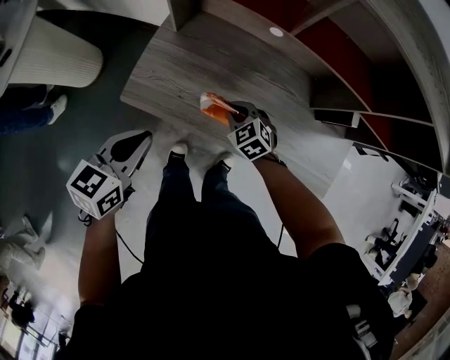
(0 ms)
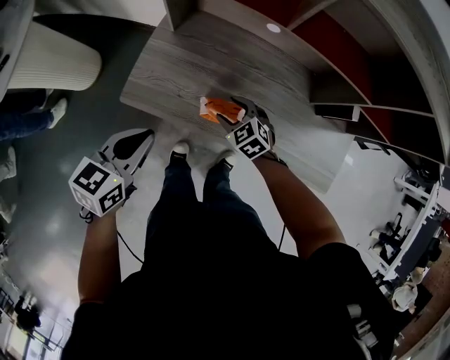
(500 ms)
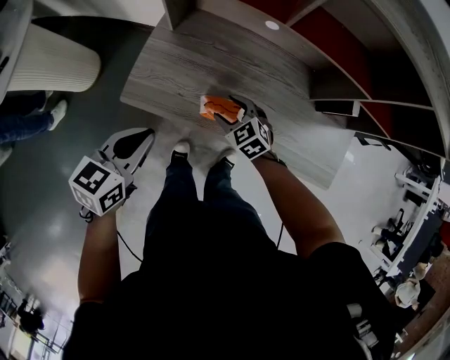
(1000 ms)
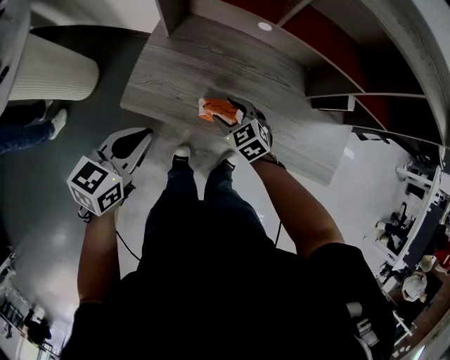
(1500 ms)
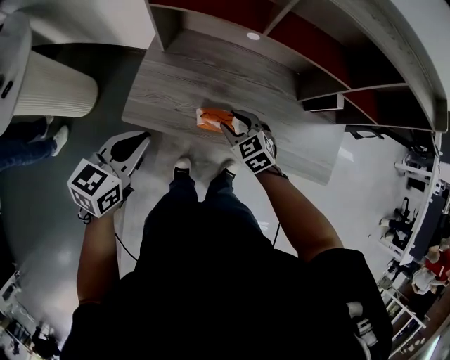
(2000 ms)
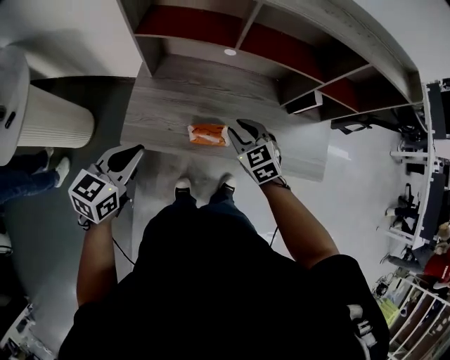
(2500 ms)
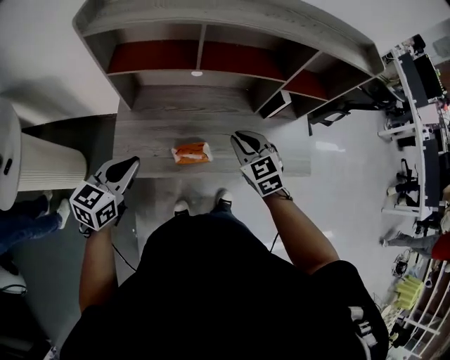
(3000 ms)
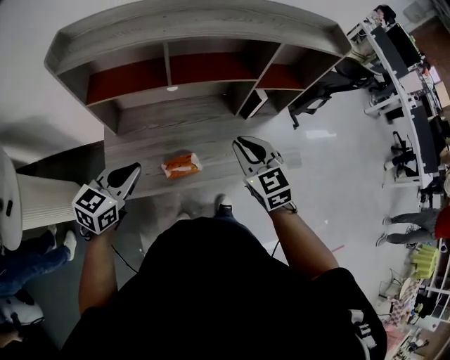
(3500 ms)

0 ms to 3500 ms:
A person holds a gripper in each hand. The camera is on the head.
0 ms to 2000 ms: The right gripper heads upward, covering some 5 cm, and opens up.
2000 ms to 3500 ms: The left gripper changes place by about 10 cm, and turns by roughly 20 degrees. Meanwhile the right gripper moves upward, about 25 cm, rotates approximately 40 degrees, and closes up.

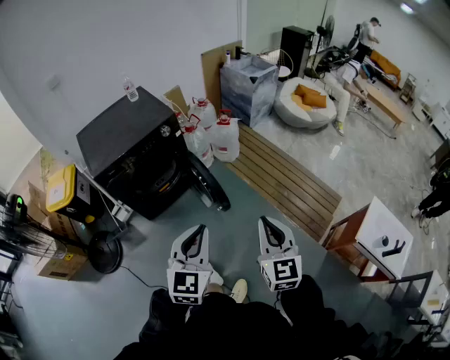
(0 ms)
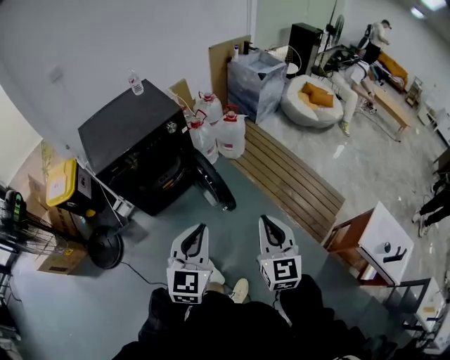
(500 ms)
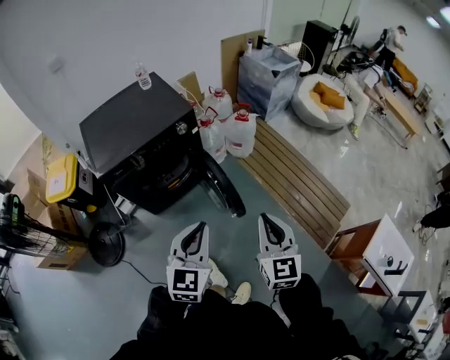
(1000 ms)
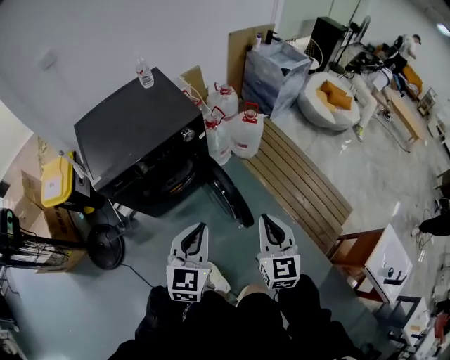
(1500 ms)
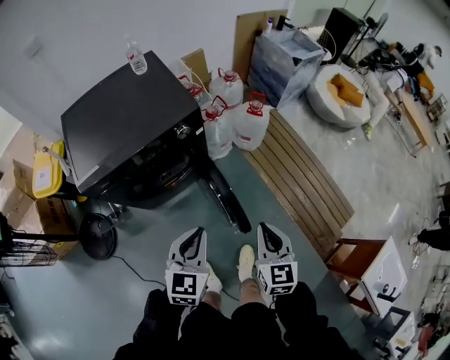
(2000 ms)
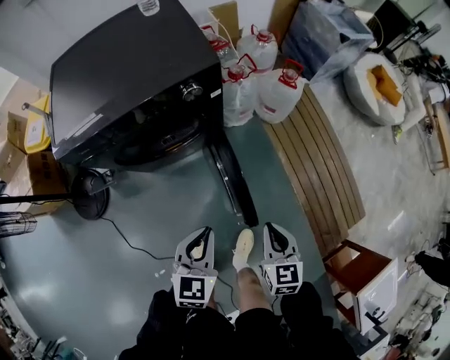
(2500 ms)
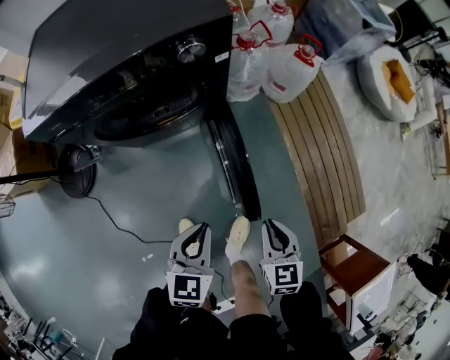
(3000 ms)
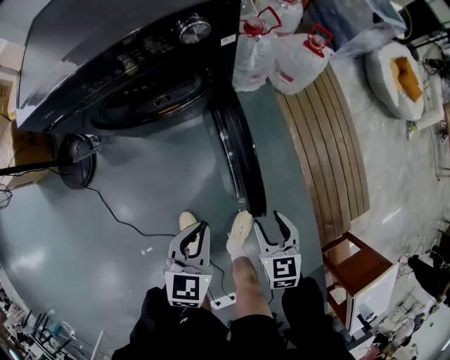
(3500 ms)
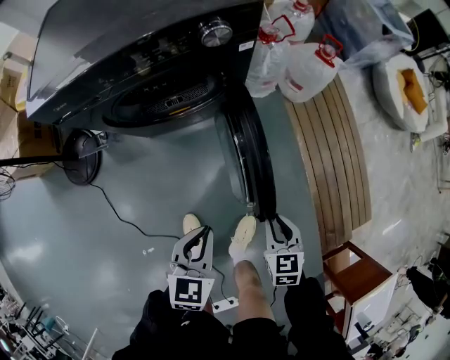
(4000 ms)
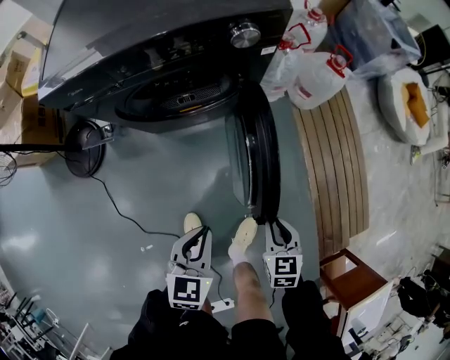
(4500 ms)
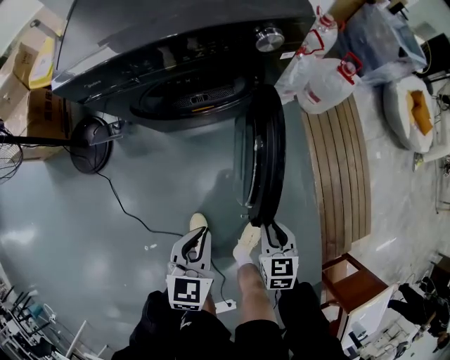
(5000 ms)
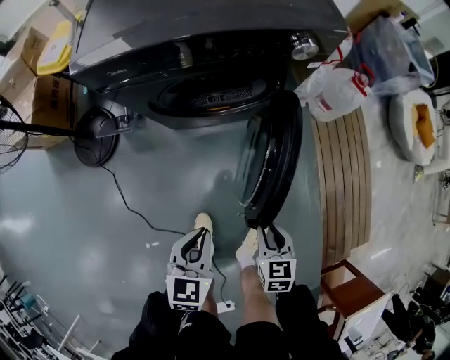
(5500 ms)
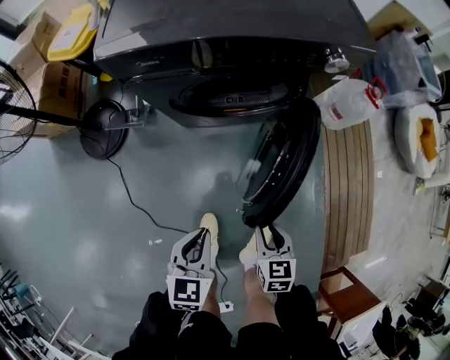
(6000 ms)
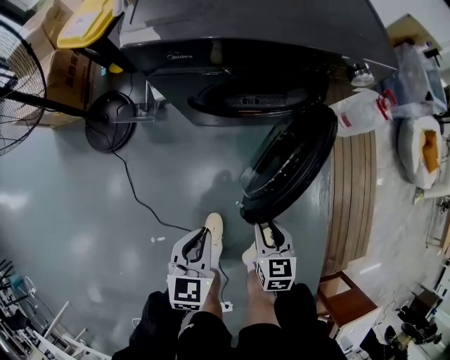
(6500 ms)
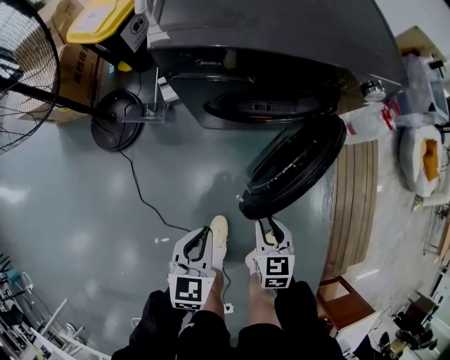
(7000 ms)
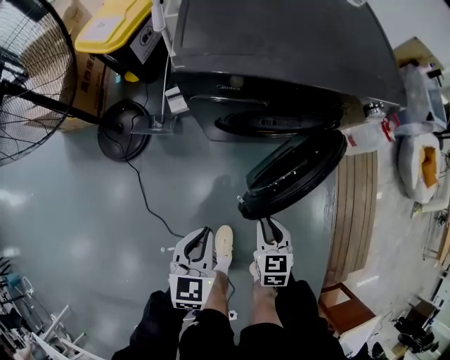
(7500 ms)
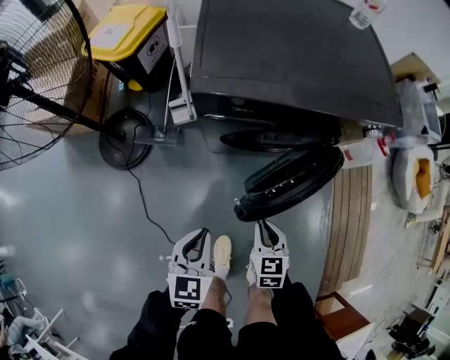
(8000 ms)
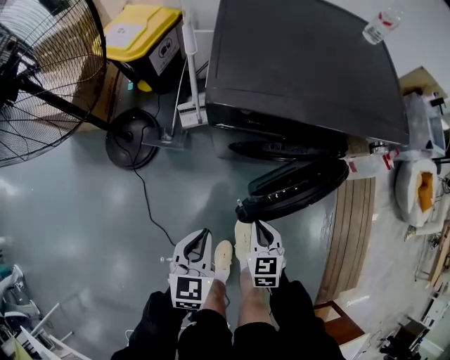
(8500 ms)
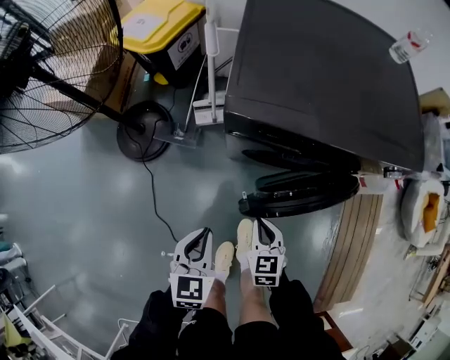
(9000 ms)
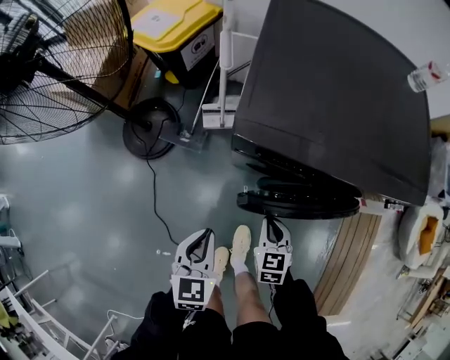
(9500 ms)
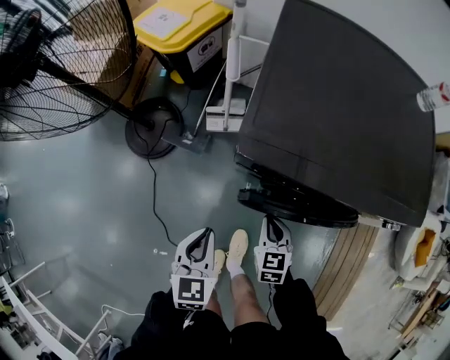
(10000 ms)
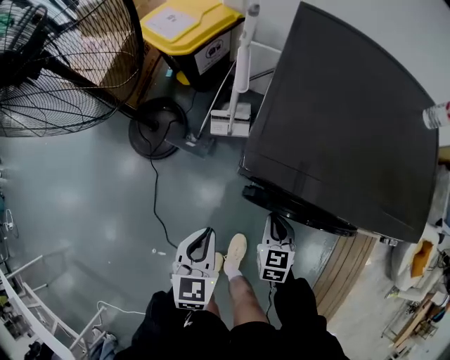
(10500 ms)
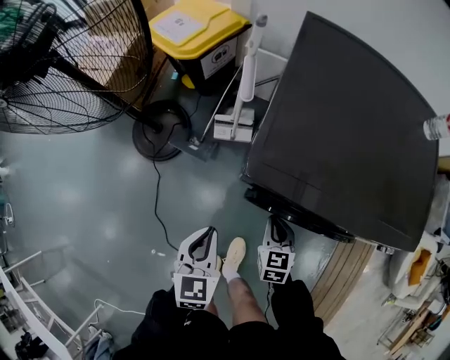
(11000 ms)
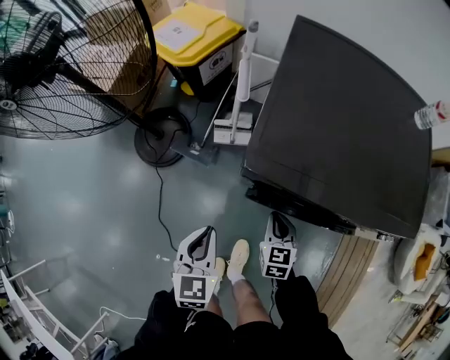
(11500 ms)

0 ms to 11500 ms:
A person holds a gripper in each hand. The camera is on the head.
0 ms to 2000 ms: The right gripper heads forward, downward and to the left, covering approximately 40 cm; the left gripper heads forward, to the left and downward, covering about 40 cm.
2000 ms to 4000 ms: Both grippers move downward, some 35 cm. The right gripper turns by approximately 30 degrees, and opens, then closes once more. Meanwhile the left gripper changes its angle by roughly 20 degrees.
4000 ms to 6000 ms: The two grippers go about 20 cm to the left.
6000 ms to 7500 ms: The right gripper moves to the left and forward, approximately 15 cm. Meanwhile the left gripper is displaced to the left by approximately 15 cm.
7500 ms to 9500 ms: The left gripper goes approximately 15 cm forward and to the left. Meanwhile the right gripper heads forward, covering roughly 20 cm.
9500 ms to 11500 ms: The two grippers go some 10 cm forward.

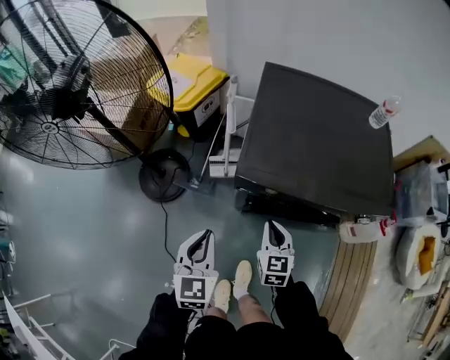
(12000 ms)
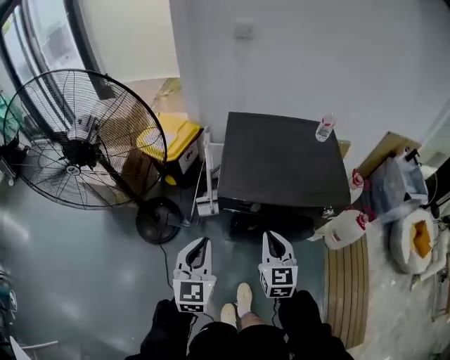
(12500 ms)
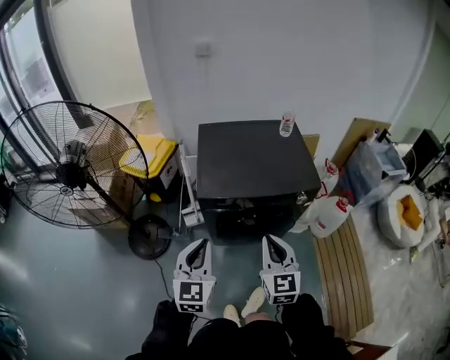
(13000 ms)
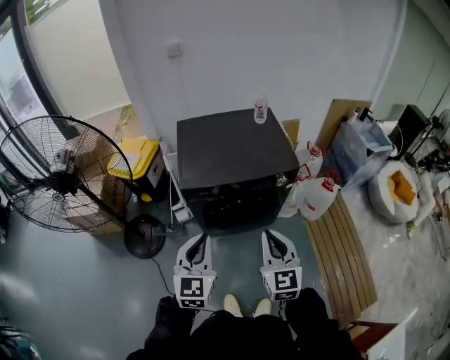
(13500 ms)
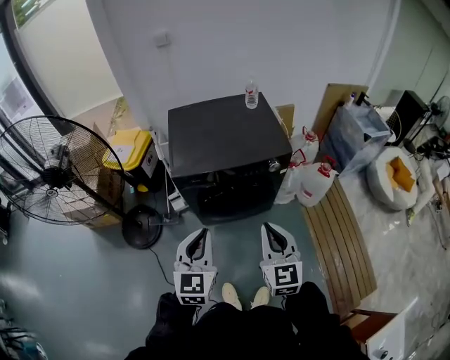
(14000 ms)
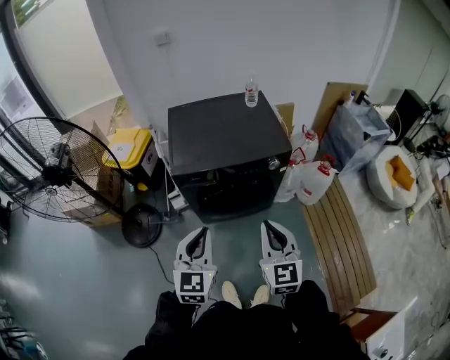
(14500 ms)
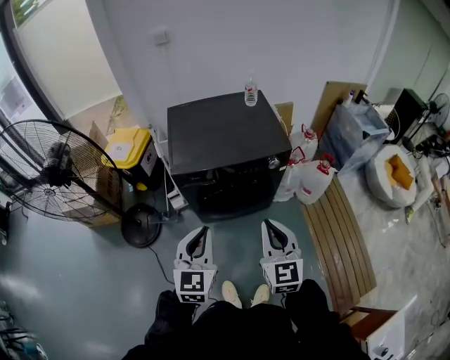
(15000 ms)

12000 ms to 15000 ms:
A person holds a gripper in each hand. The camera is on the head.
12000 ms to 13500 ms: Both grippers travel together upward, backward and to the right, roughly 40 cm. The left gripper swivels roughly 30 degrees; the right gripper changes its angle by roughly 30 degrees.
13500 ms to 15000 ms: There are only small adjustments of the grippers.

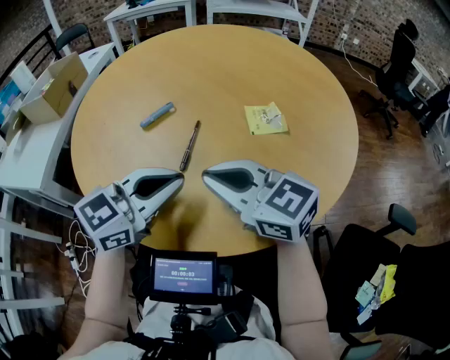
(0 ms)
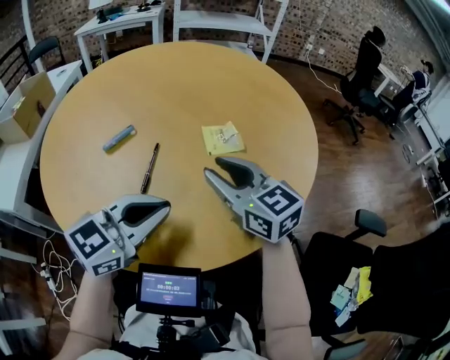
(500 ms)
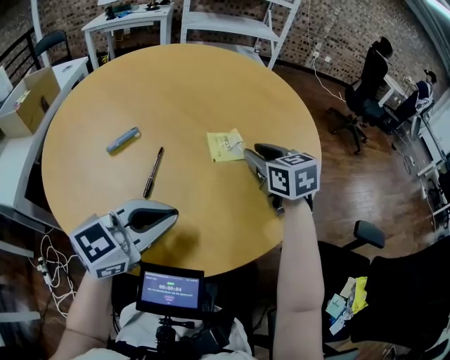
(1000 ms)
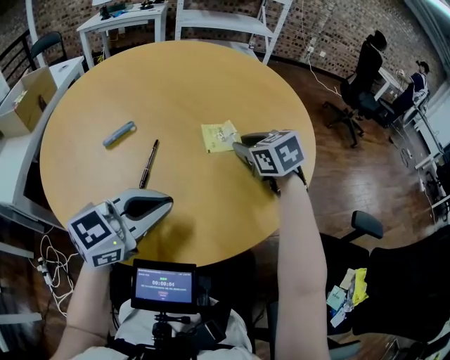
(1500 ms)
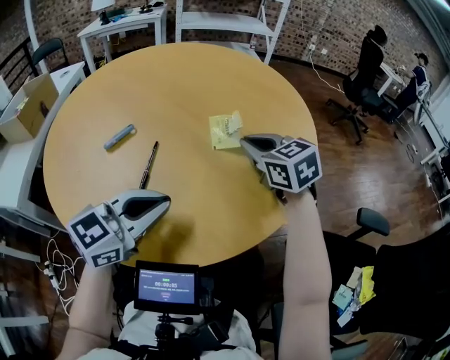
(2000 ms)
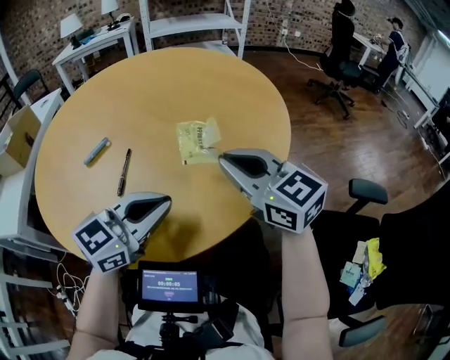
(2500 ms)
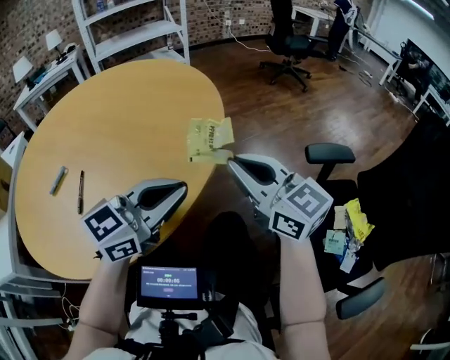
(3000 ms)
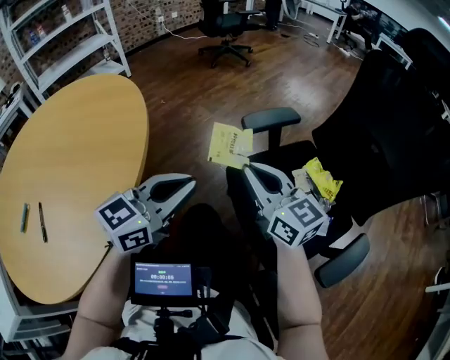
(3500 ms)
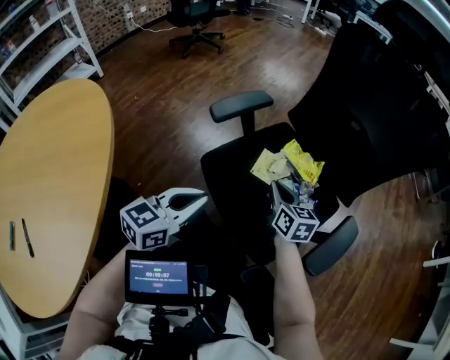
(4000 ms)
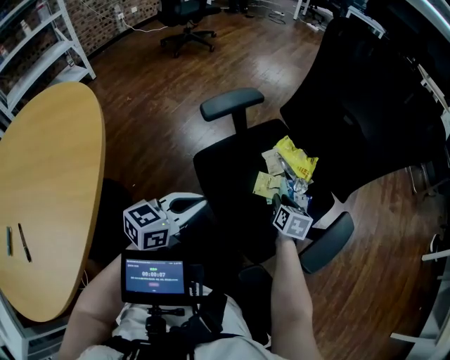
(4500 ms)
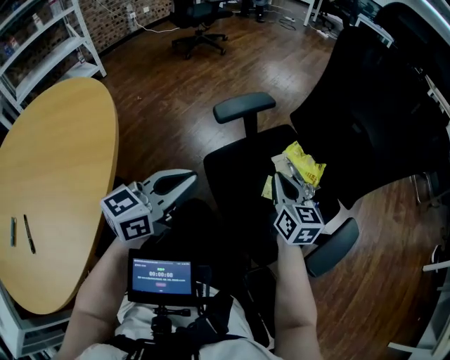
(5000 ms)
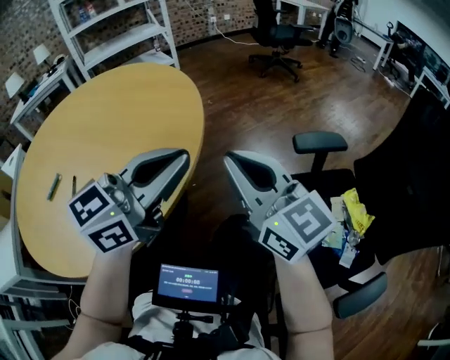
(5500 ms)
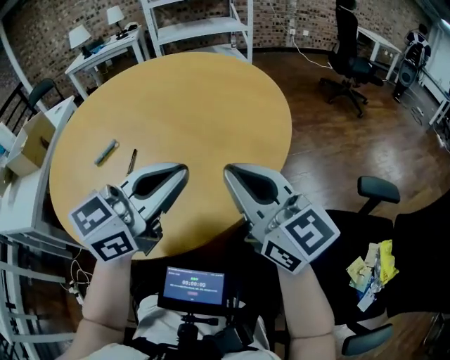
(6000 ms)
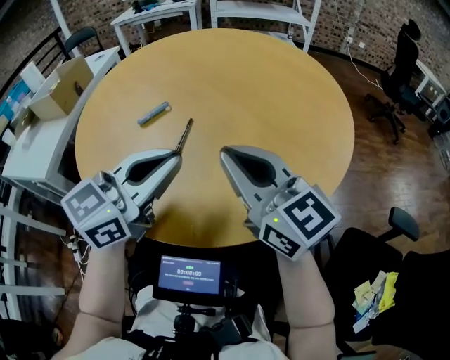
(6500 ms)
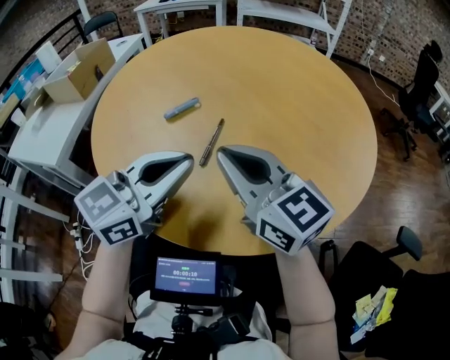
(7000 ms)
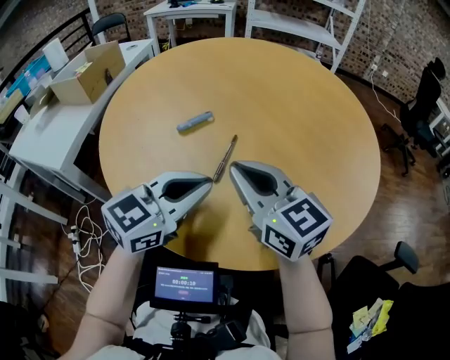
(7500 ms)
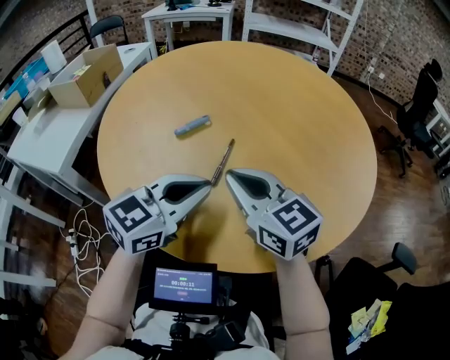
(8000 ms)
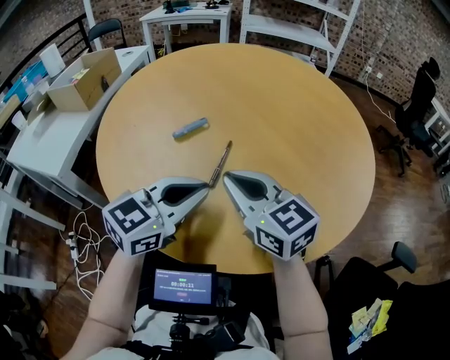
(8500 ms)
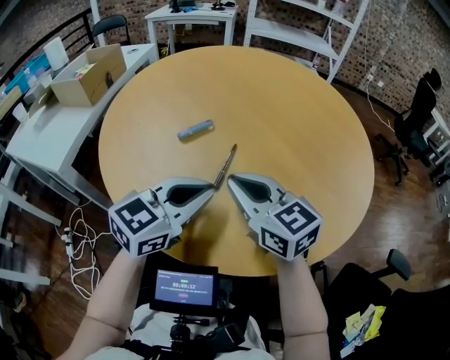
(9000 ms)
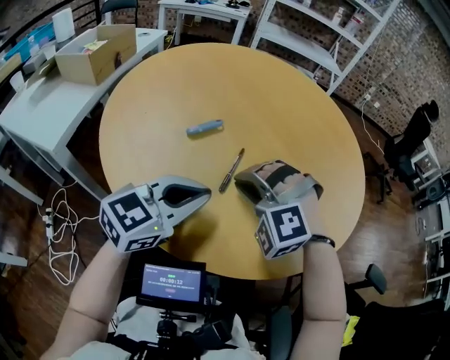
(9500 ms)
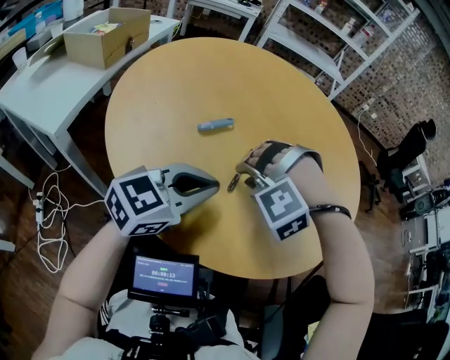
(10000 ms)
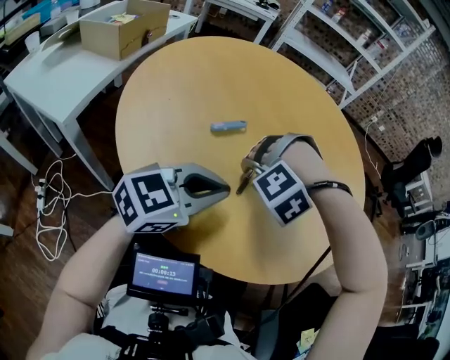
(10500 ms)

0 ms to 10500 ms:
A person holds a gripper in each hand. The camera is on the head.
0 ms to 2000 ms: The right gripper shifts some 20 cm to the right and forward, swivels approximately 30 degrees, and opens, then closes again, while the left gripper moves to the right, about 5 cm.
2000 ms to 4000 ms: The two grippers travel together, approximately 60 cm. The right gripper rotates some 90 degrees; the left gripper rotates approximately 50 degrees.
4000 ms to 6500 ms: The two grippers travel together, about 60 cm. The right gripper swivels about 90 degrees, and opens, then closes once more. Meanwhile the left gripper swivels roughly 60 degrees.
6500 ms to 8500 ms: The left gripper goes roughly 10 cm downward and to the left. The right gripper is displaced to the left and downward by about 10 cm.
8500 ms to 10500 ms: The right gripper is displaced downward by approximately 10 cm, points its fingers some 60 degrees further downward, and opens.
